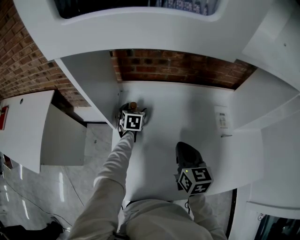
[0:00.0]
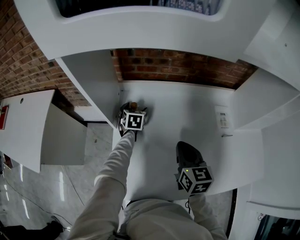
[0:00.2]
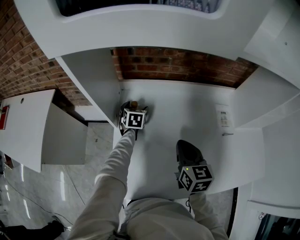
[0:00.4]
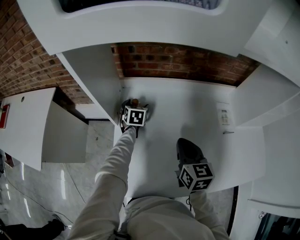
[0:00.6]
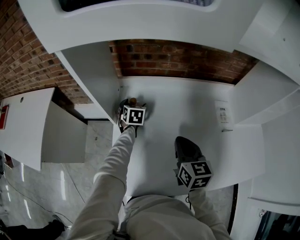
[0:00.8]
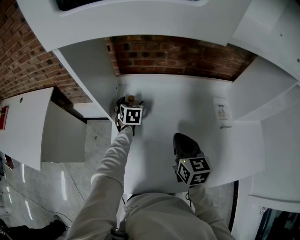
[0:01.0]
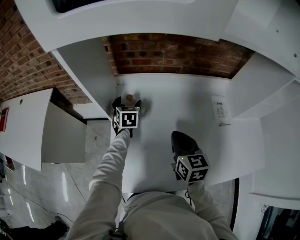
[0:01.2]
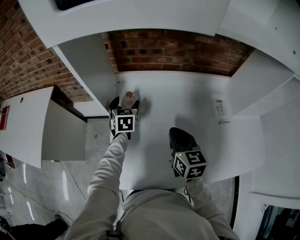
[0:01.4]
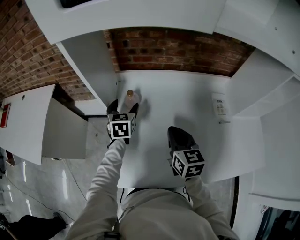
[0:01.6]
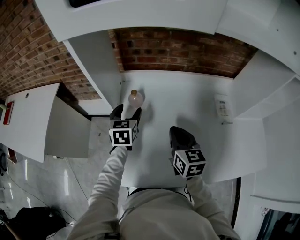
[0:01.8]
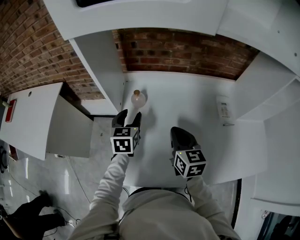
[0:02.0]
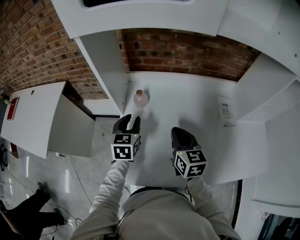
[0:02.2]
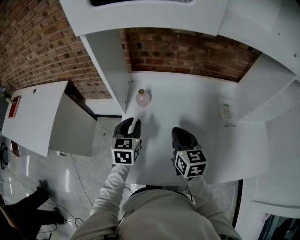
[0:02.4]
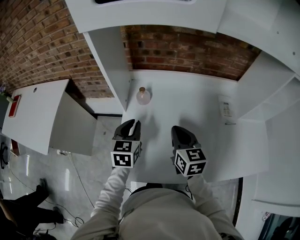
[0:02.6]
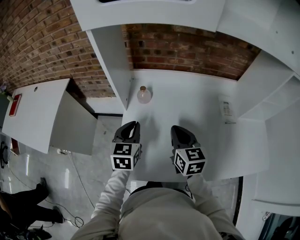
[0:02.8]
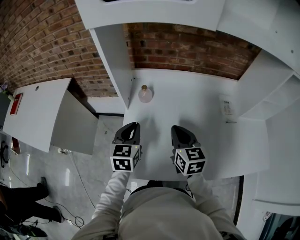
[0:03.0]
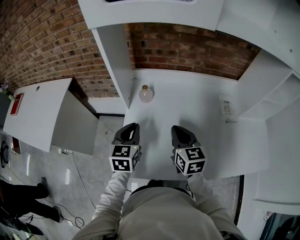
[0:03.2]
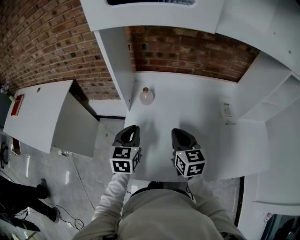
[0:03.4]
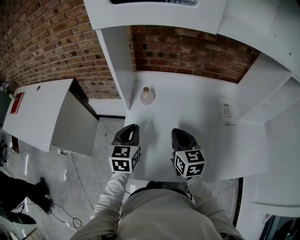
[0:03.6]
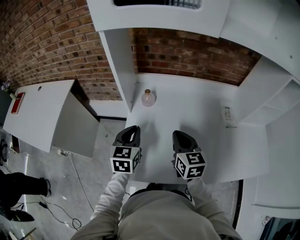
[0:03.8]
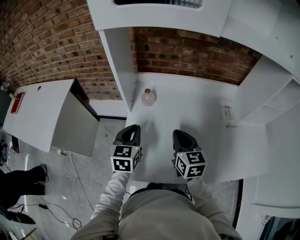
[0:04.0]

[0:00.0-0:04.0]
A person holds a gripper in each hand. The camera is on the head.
0:00.0 to 0:01.4: The left gripper is displaced upward and backward by approximately 10 cm.
0:01.4 to 0:02.6: The left gripper goes about 20 cm backward and upward, and closes up.
0:02.6 to 0:04.0: The grippers move only a little.

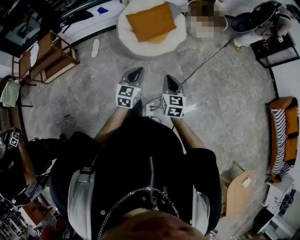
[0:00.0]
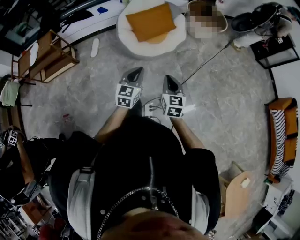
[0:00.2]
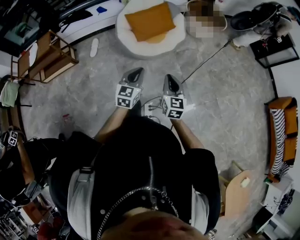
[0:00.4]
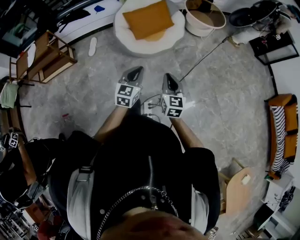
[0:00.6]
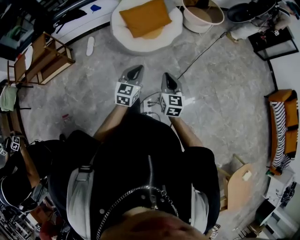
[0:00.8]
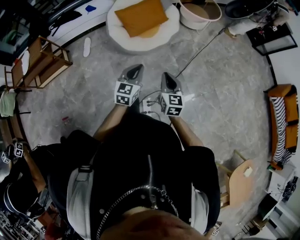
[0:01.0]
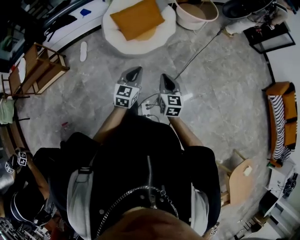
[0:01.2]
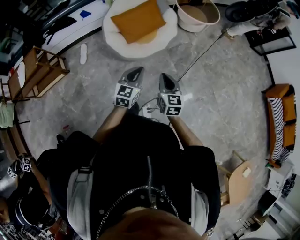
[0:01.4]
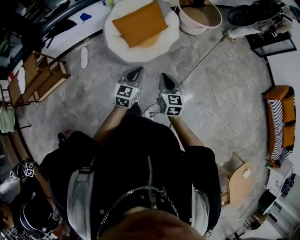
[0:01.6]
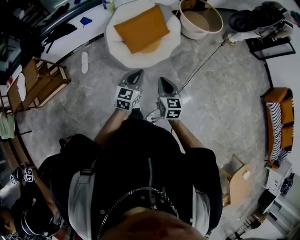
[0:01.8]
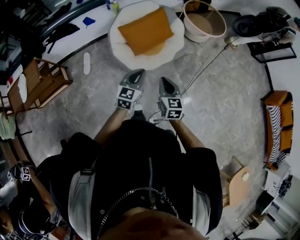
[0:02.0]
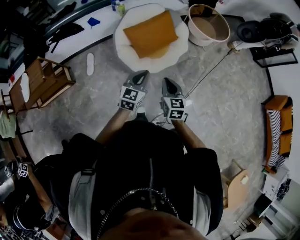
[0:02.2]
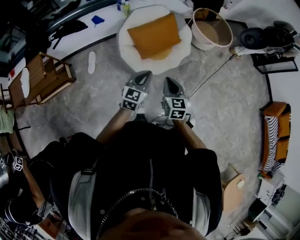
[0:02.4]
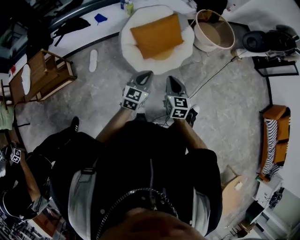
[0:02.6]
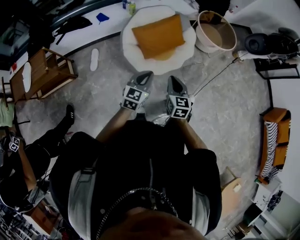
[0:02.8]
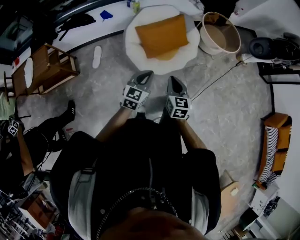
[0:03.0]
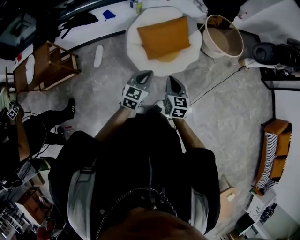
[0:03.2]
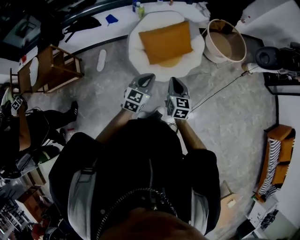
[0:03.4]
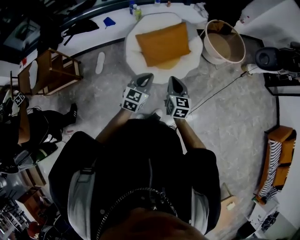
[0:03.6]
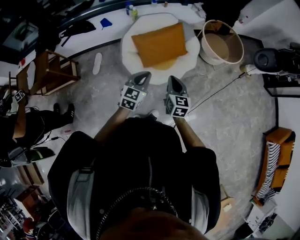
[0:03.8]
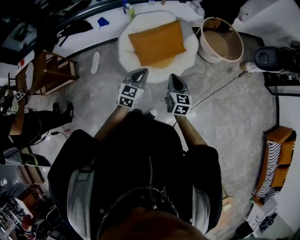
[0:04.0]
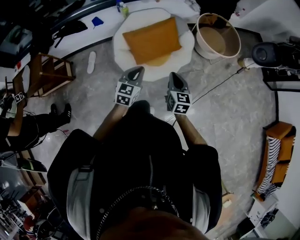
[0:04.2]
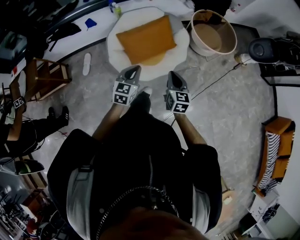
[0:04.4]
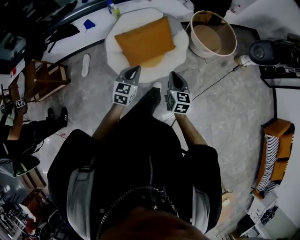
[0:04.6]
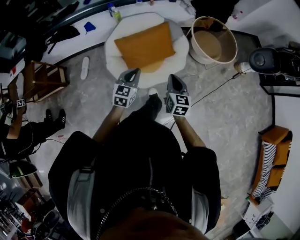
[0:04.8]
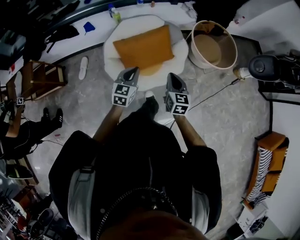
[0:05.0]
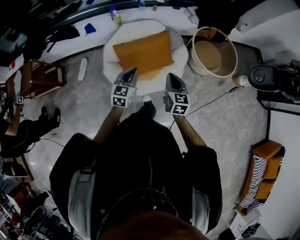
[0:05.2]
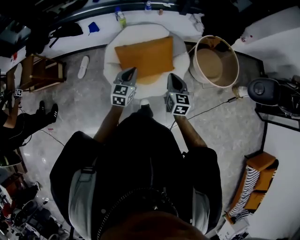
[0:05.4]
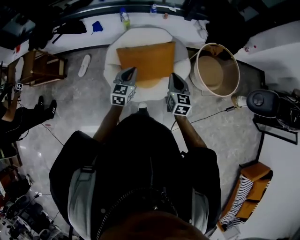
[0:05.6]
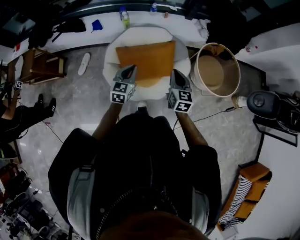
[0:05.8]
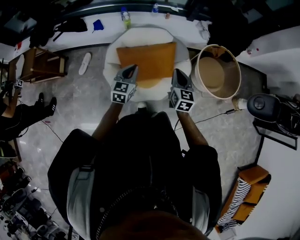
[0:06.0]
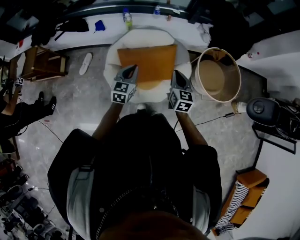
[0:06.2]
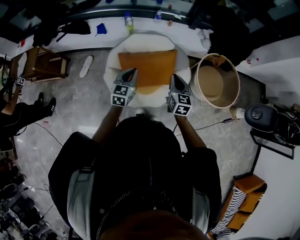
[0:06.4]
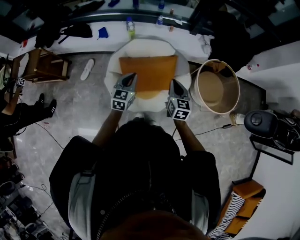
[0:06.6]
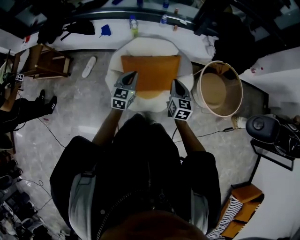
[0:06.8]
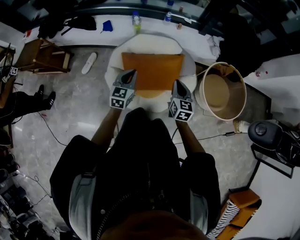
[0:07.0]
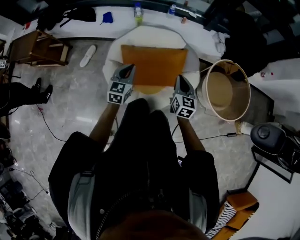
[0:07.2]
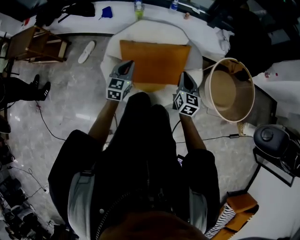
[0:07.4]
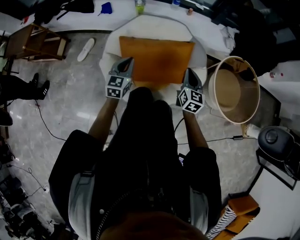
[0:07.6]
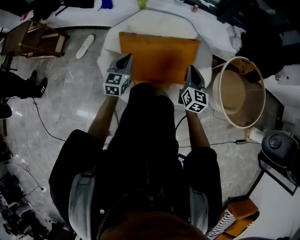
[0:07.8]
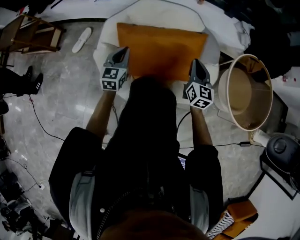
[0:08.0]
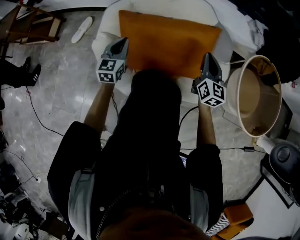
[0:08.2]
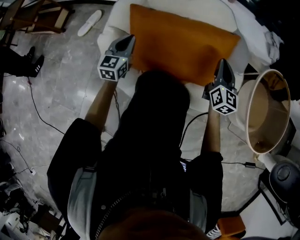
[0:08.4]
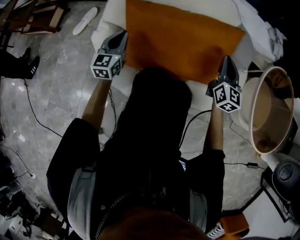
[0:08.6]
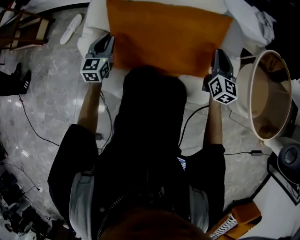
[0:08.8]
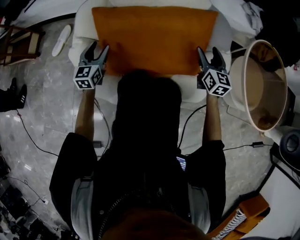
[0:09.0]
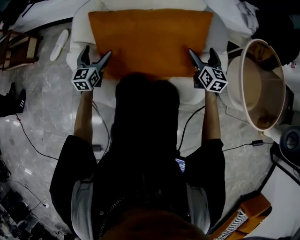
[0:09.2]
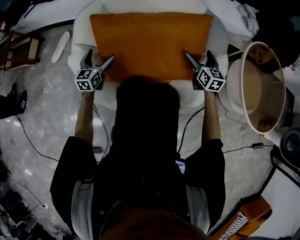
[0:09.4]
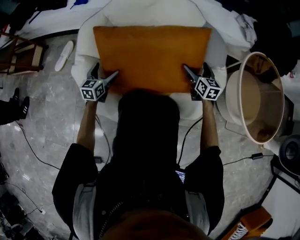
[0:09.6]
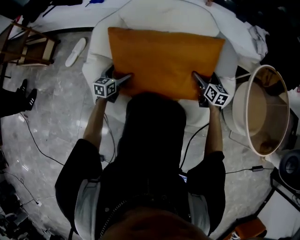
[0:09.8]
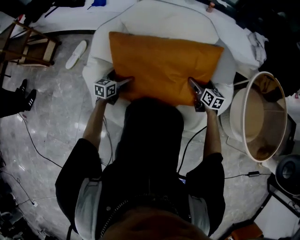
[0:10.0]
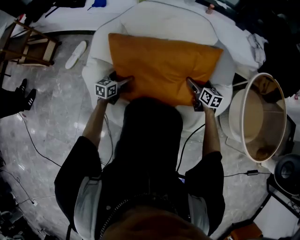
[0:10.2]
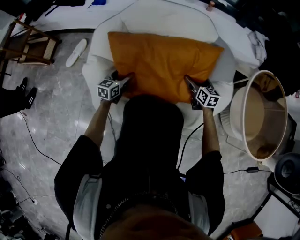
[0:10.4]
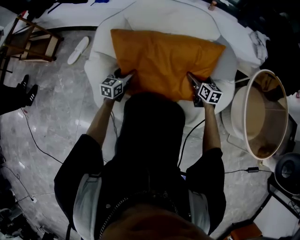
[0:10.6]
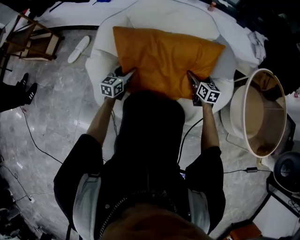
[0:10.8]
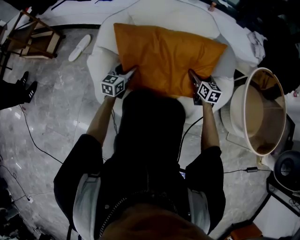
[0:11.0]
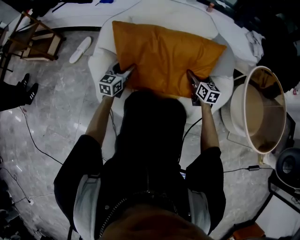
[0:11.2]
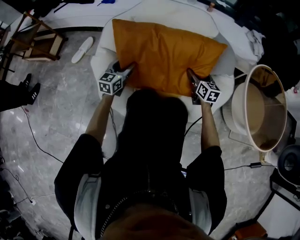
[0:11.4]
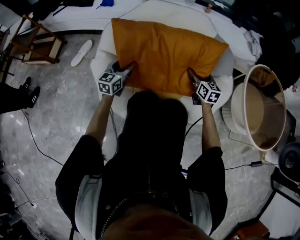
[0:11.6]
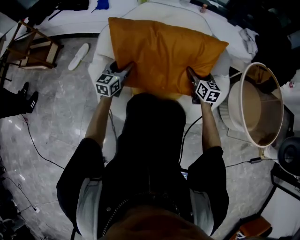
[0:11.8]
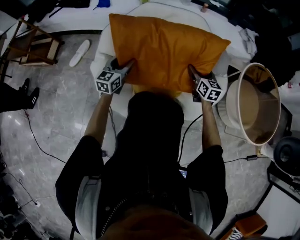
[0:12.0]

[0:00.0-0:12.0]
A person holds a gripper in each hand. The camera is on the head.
0:00.0 to 0:01.6: The two grippers go roughly 15 cm forward.
0:01.6 to 0:03.0: The right gripper shifts some 15 cm forward and to the left, while the left gripper travels to the left and forward by roughly 15 cm.
0:03.0 to 0:04.4: The right gripper shifts some 20 cm to the right and forward, while the left gripper travels forward and to the right by some 15 cm.
0:04.4 to 0:06.0: The grippers both shift forward by some 25 cm.
0:06.0 to 0:07.6: The right gripper travels downward and forward by some 25 cm. The left gripper is displaced downward by roughly 20 cm.
0:07.6 to 0:09.0: Both grippers move downward, roughly 30 cm. The right gripper opens up, while the left gripper opens.
0:09.0 to 0:10.4: The two grippers go about 10 cm downward. The left gripper opens, then closes once more, while the right gripper turns by some 20 degrees.
0:10.4 to 0:12.0: The grippers both shift upward by about 15 cm.

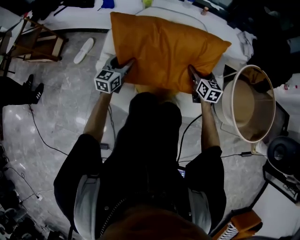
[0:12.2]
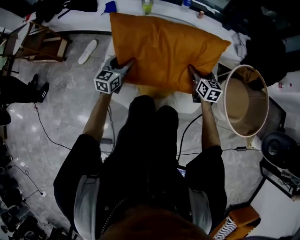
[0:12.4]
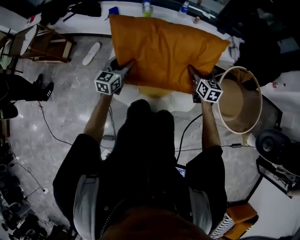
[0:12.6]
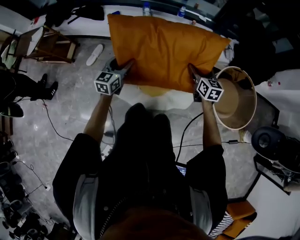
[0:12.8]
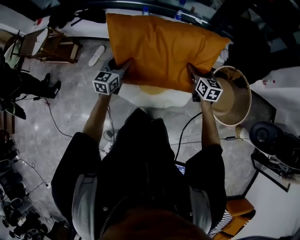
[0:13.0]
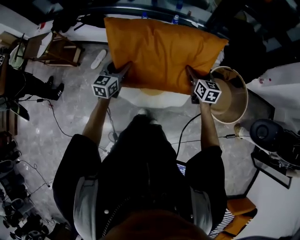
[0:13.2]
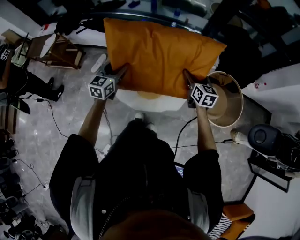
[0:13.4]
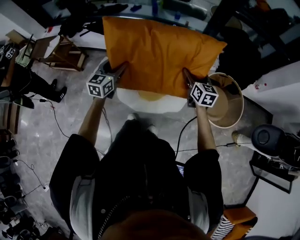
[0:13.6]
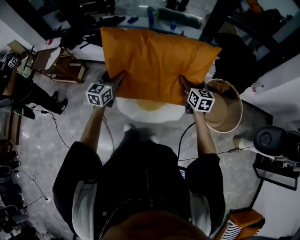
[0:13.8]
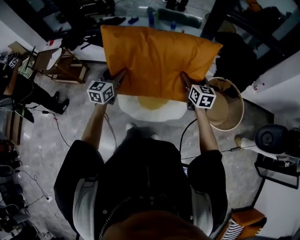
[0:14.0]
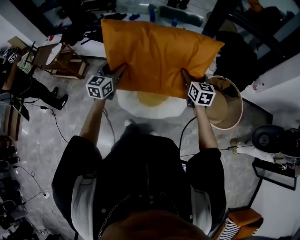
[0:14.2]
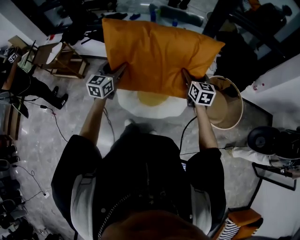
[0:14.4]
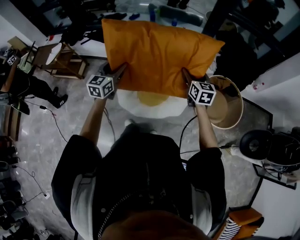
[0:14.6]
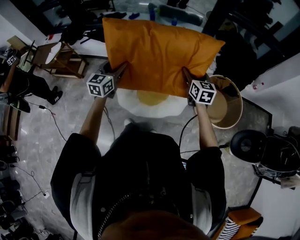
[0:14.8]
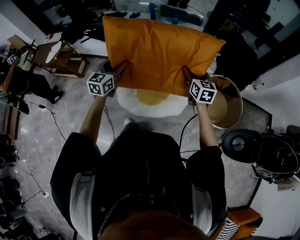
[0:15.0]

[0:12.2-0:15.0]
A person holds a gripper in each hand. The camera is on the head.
0:12.2 to 0:13.6: Both grippers move upward, approximately 50 cm.
0:13.6 to 0:15.0: The grippers move only a little.

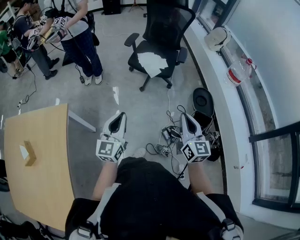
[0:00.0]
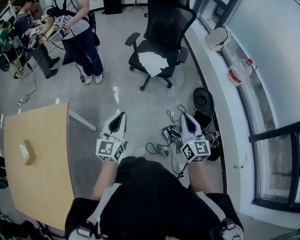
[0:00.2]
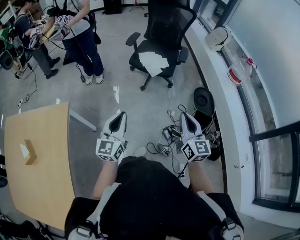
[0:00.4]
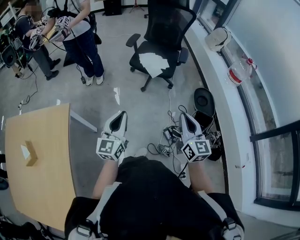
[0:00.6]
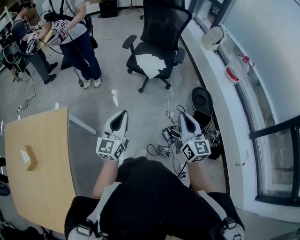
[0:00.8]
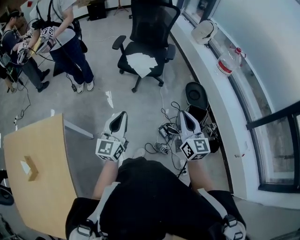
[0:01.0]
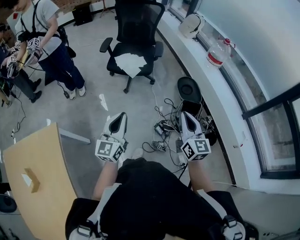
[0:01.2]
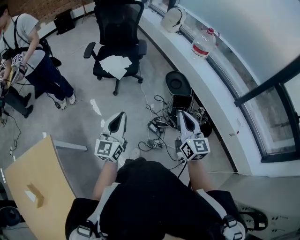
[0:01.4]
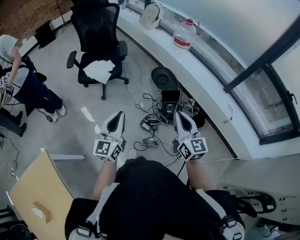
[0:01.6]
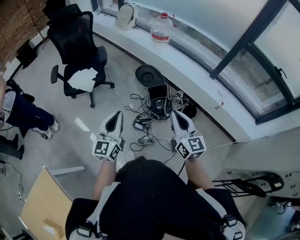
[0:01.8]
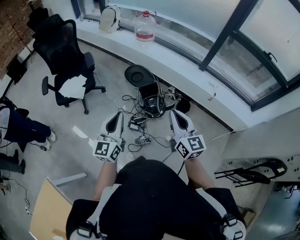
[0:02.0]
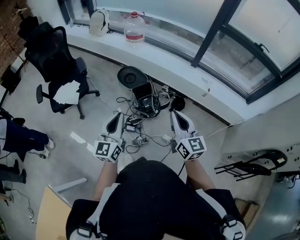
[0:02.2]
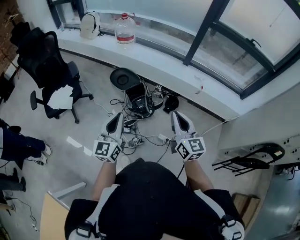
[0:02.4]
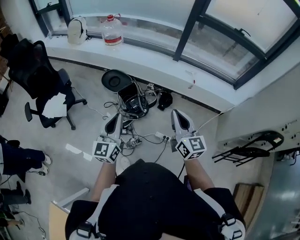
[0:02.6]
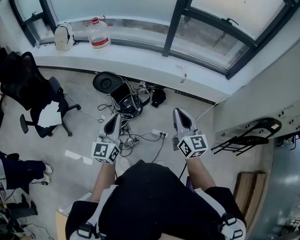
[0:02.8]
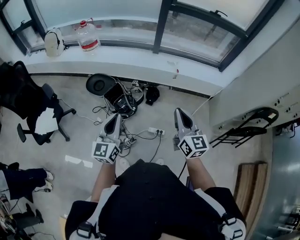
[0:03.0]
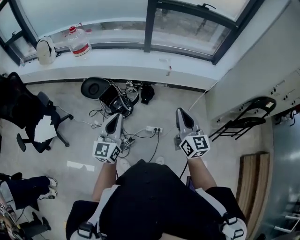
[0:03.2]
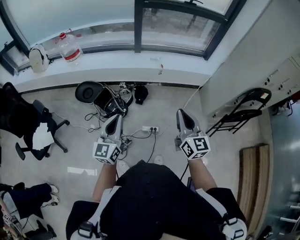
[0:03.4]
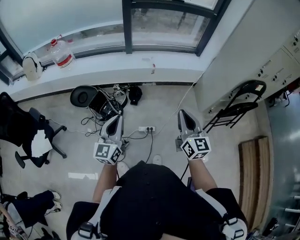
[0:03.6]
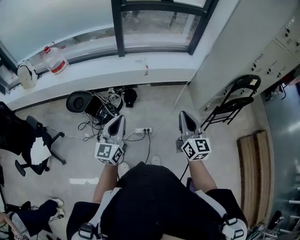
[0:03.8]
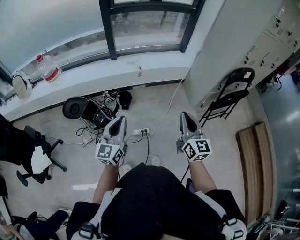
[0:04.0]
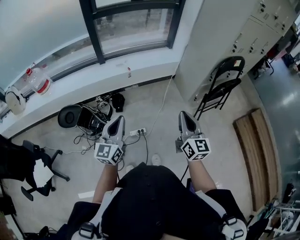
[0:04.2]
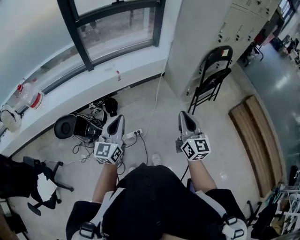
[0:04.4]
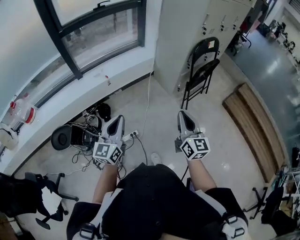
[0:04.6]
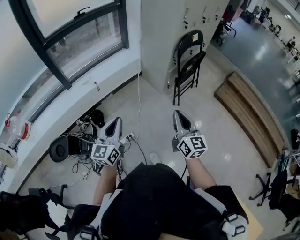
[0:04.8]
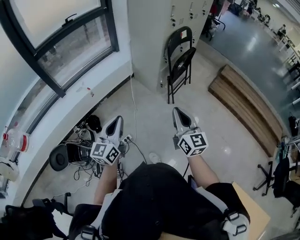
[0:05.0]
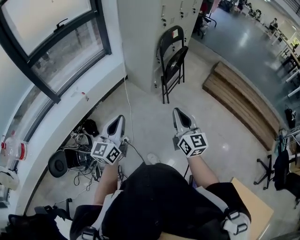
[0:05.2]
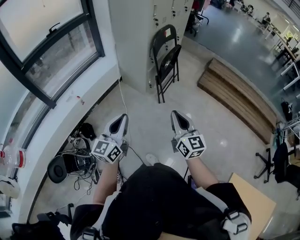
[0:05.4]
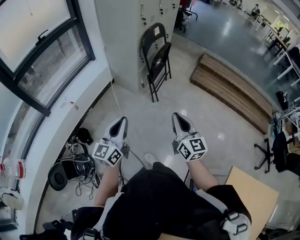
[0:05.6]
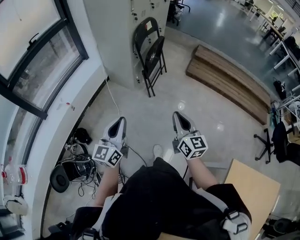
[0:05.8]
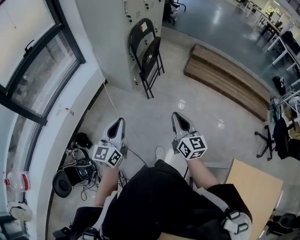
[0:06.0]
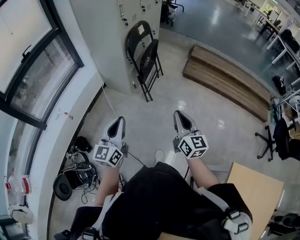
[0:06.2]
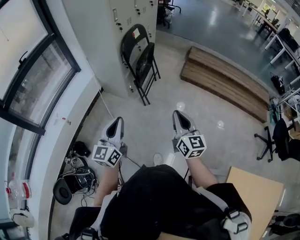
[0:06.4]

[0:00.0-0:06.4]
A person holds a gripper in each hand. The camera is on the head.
0:00.0 to 0:01.6: The right gripper ends up about 15 cm from where it was, and rotates some 30 degrees, while the left gripper moves about 15 cm, and rotates some 30 degrees.
0:01.6 to 0:03.2: The right gripper shifts by approximately 35 cm, and swivels about 50 degrees. Meanwhile the left gripper shifts by some 30 cm, and swivels approximately 50 degrees.
0:03.2 to 0:04.8: The right gripper moves some 30 cm, and rotates roughly 40 degrees. The left gripper shifts by some 30 cm, and rotates roughly 50 degrees.
0:04.8 to 0:06.4: The right gripper moves some 20 cm, and changes its angle by approximately 30 degrees. Meanwhile the left gripper ends up about 20 cm from where it was, and rotates about 30 degrees.
